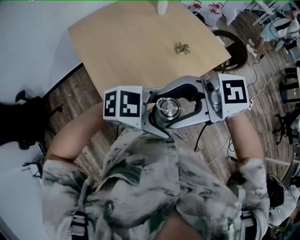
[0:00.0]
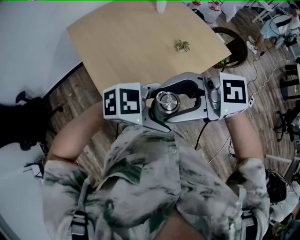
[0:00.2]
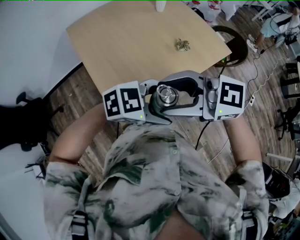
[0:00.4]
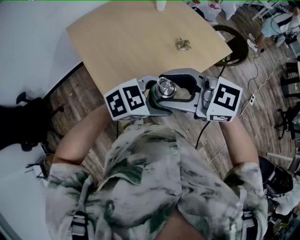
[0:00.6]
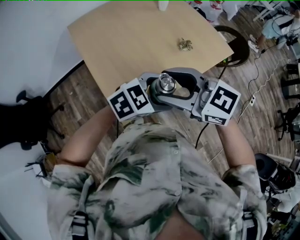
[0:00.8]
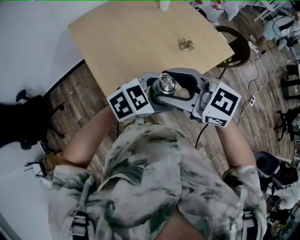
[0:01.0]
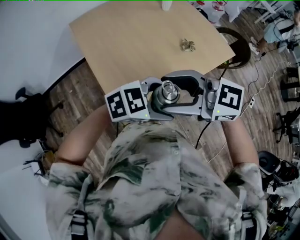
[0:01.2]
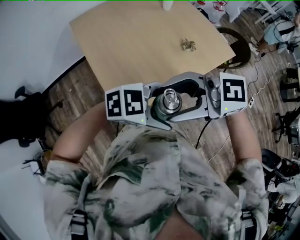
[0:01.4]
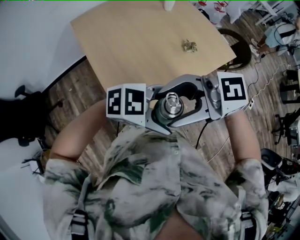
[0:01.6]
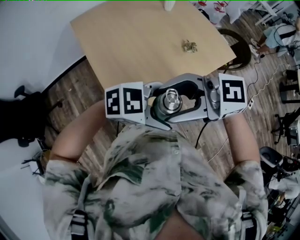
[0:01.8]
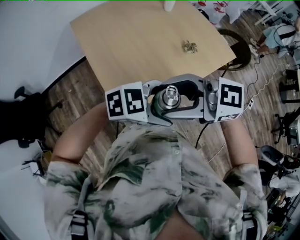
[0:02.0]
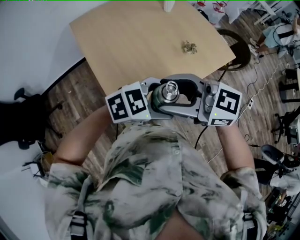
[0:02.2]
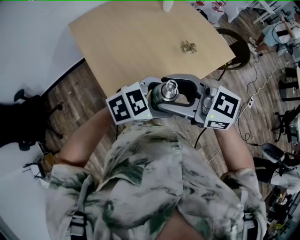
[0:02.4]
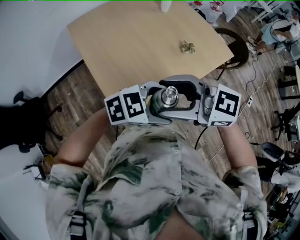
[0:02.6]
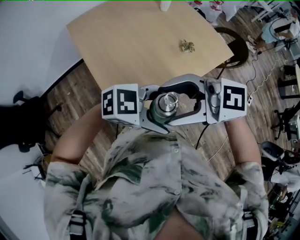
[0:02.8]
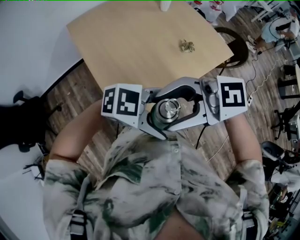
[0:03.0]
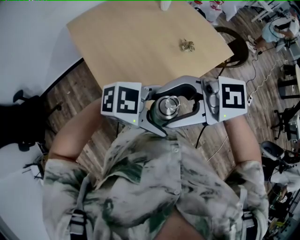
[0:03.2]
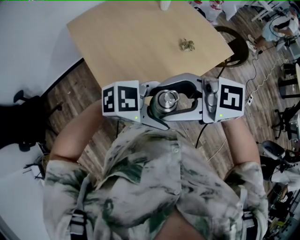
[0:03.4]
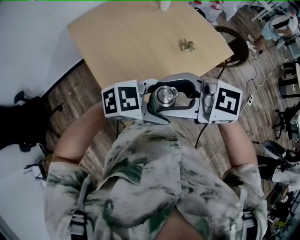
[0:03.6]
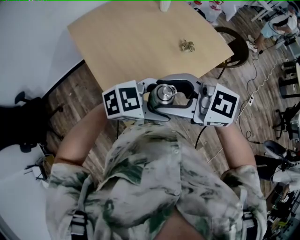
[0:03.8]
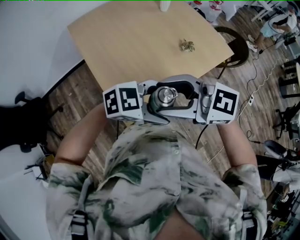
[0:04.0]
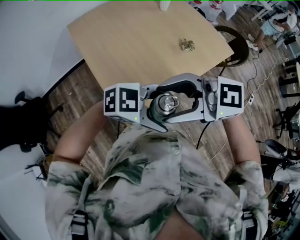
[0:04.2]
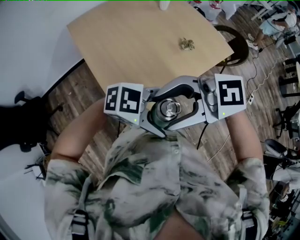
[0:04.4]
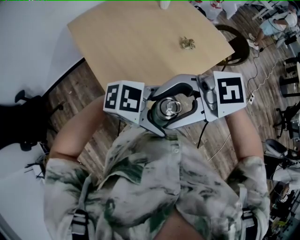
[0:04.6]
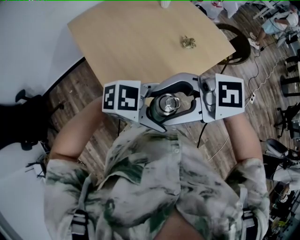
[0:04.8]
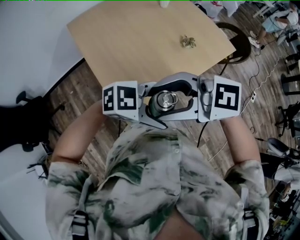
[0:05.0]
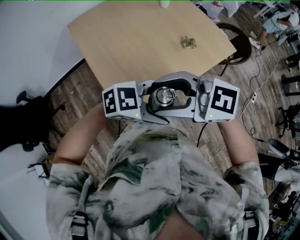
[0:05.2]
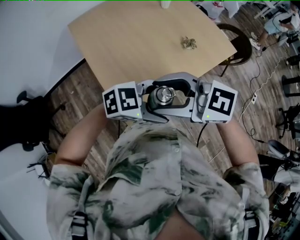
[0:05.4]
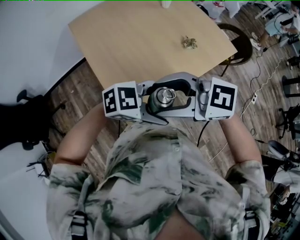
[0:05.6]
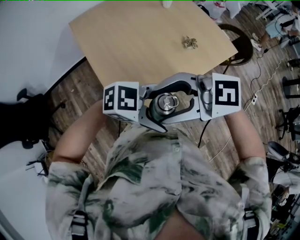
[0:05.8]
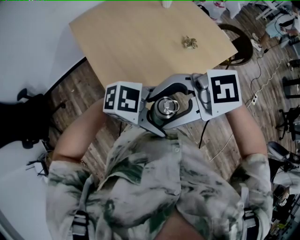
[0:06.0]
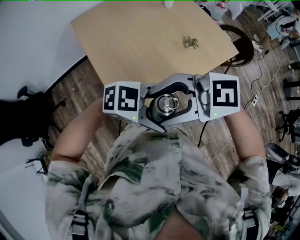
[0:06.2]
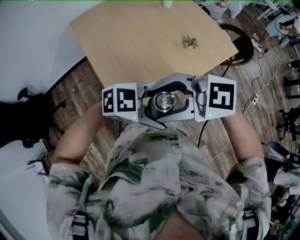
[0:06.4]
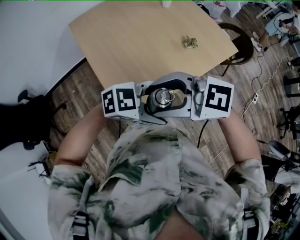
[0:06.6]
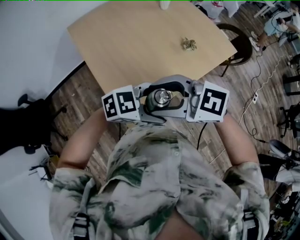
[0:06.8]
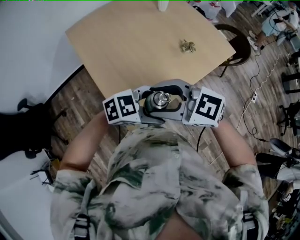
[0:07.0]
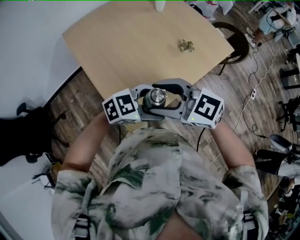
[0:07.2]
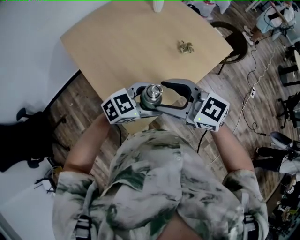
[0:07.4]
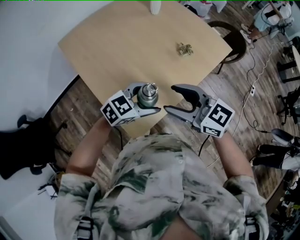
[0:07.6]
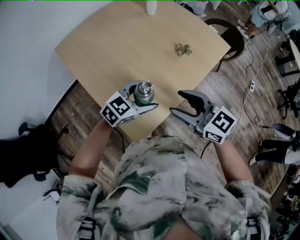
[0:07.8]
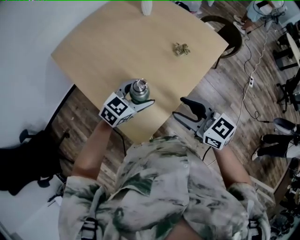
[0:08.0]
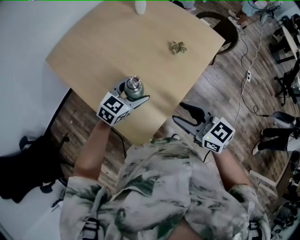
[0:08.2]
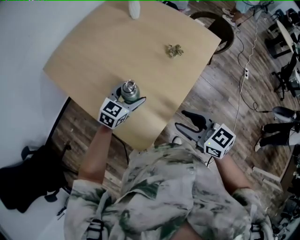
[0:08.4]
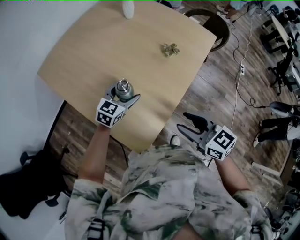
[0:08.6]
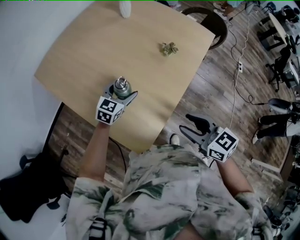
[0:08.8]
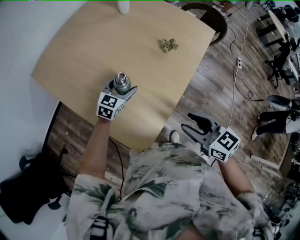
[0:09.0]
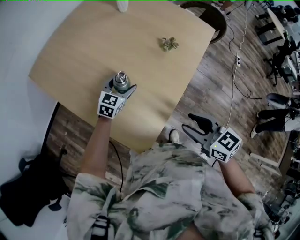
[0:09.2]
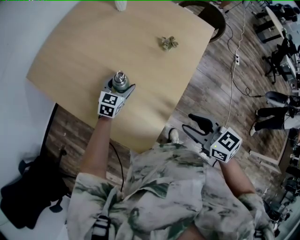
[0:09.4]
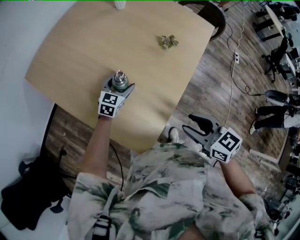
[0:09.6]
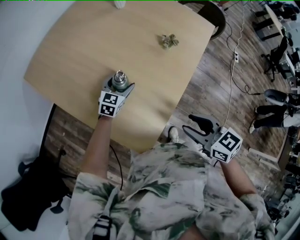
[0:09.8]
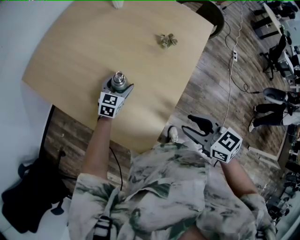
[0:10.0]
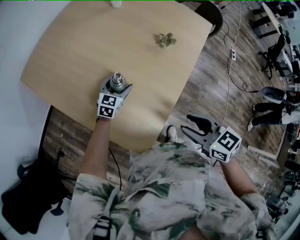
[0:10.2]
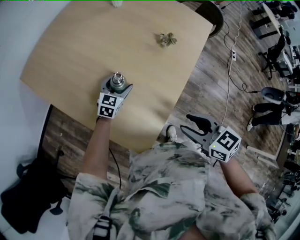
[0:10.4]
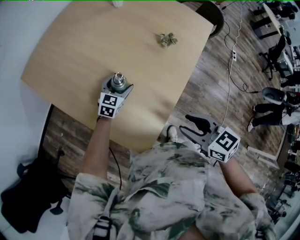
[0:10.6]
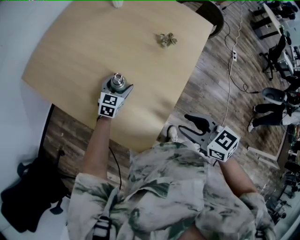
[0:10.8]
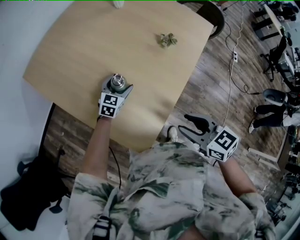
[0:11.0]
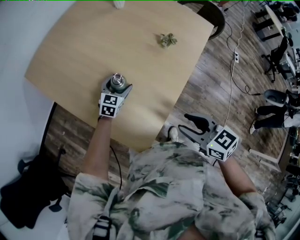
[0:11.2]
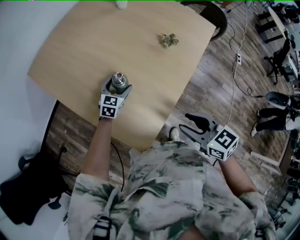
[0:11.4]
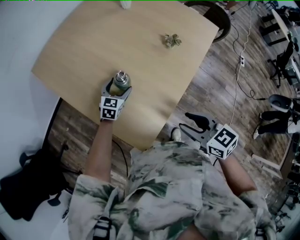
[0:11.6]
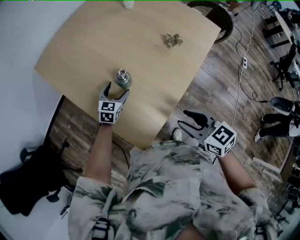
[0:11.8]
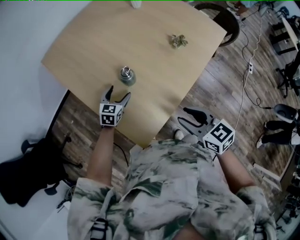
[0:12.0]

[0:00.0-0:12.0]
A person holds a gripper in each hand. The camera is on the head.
6.0 to 7.6 s: The right gripper ends up approximately 15 cm from where it was, and turns by roughly 50 degrees. Meanwhile the left gripper changes place by about 20 cm, and turns by approximately 30 degrees.
7.6 to 9.0 s: The left gripper changes place by approximately 25 cm, while the right gripper travels downward by roughly 10 cm, and rotates some 30 degrees.
9.0 to 10.4 s: The left gripper heads downward, covering approximately 10 cm.
10.4 to 12.0 s: The left gripper travels backward and to the left by approximately 10 cm.

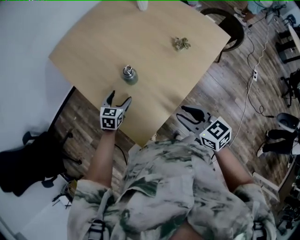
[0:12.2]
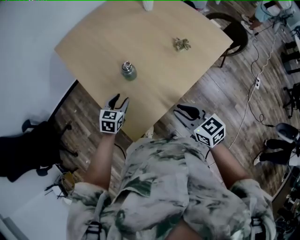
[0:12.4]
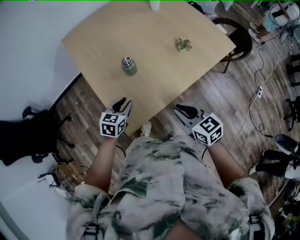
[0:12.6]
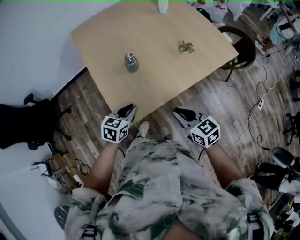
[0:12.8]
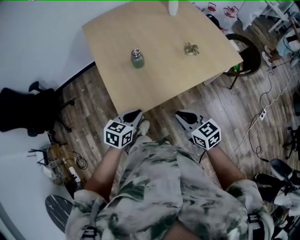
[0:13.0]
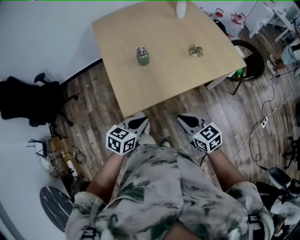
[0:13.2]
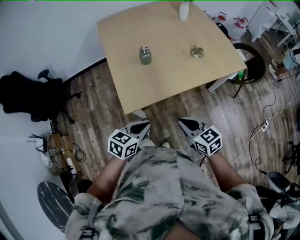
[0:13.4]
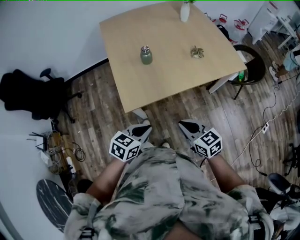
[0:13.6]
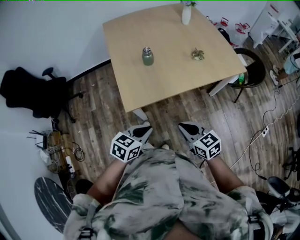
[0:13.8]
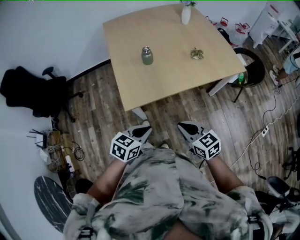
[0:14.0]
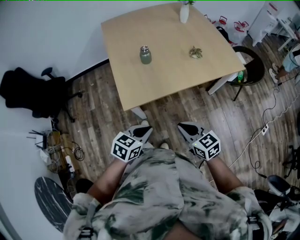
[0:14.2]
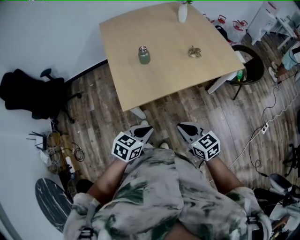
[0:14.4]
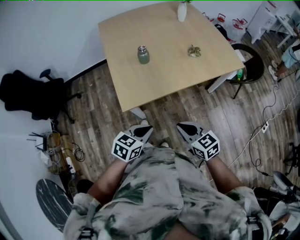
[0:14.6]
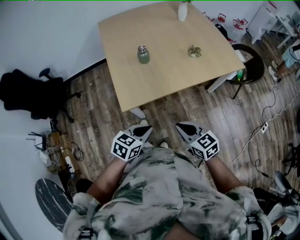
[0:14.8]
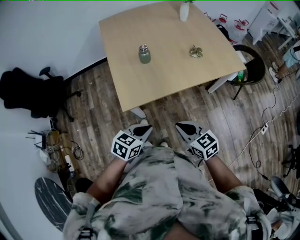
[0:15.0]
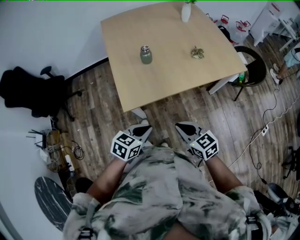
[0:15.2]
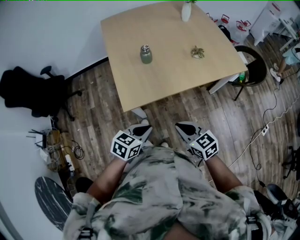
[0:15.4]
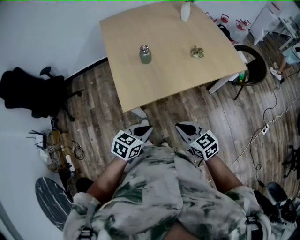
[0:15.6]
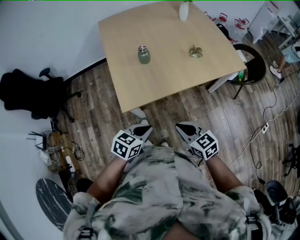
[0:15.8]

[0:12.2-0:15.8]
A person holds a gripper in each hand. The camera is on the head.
12.2 to 14.0 s: The right gripper is displaced backward and to the right by approximately 25 cm, changes its angle by some 20 degrees, and closes up, while the left gripper shifts approximately 40 cm backward, and closes.
14.0 to 15.8 s: The grippers stay close to where they were, moving slightly.

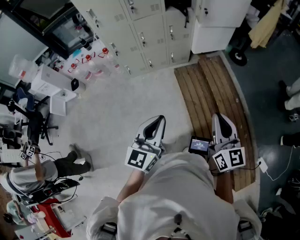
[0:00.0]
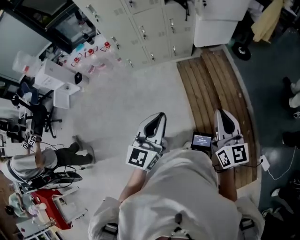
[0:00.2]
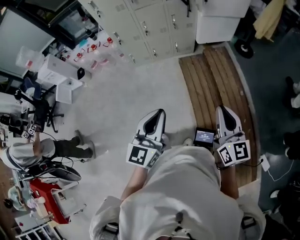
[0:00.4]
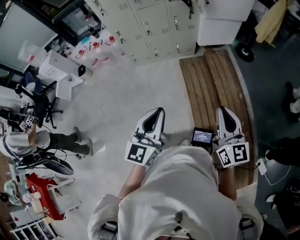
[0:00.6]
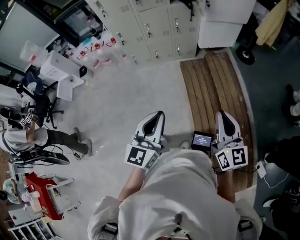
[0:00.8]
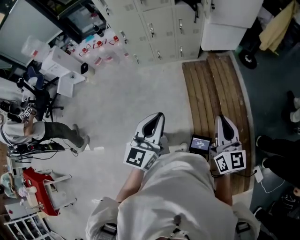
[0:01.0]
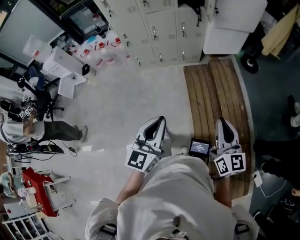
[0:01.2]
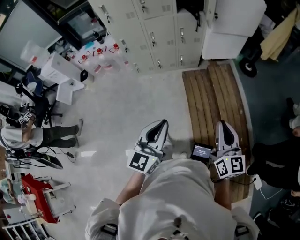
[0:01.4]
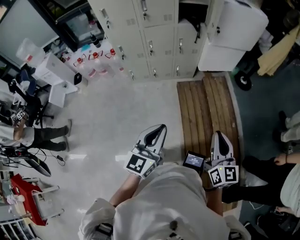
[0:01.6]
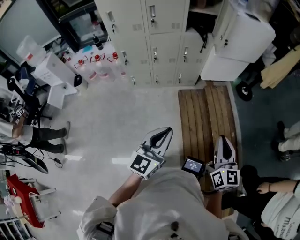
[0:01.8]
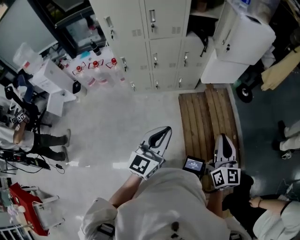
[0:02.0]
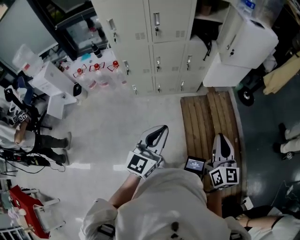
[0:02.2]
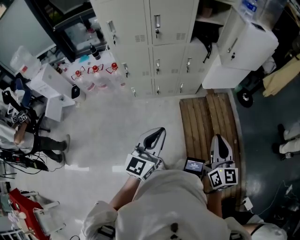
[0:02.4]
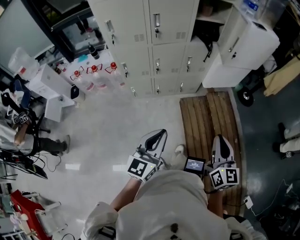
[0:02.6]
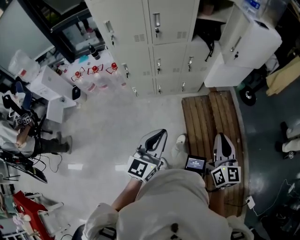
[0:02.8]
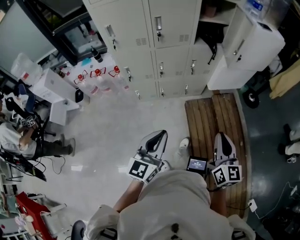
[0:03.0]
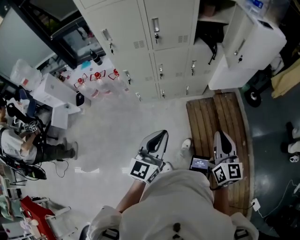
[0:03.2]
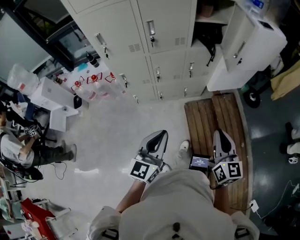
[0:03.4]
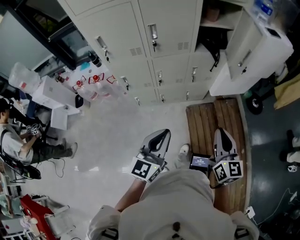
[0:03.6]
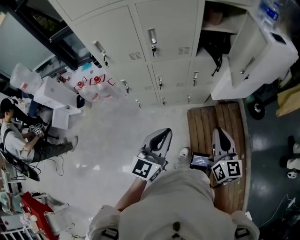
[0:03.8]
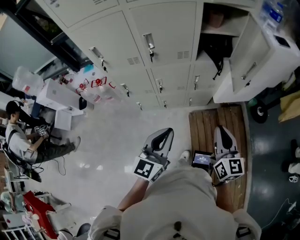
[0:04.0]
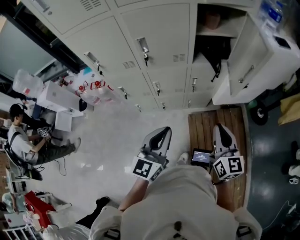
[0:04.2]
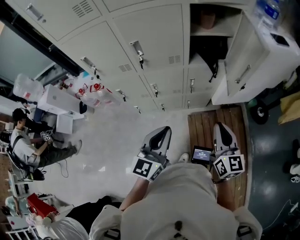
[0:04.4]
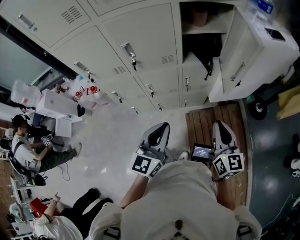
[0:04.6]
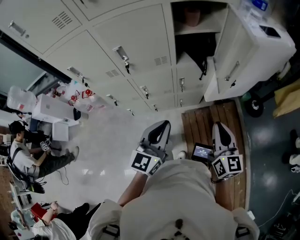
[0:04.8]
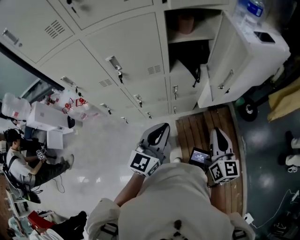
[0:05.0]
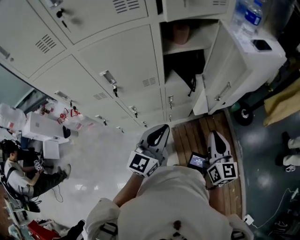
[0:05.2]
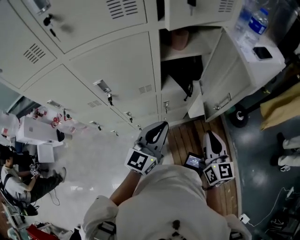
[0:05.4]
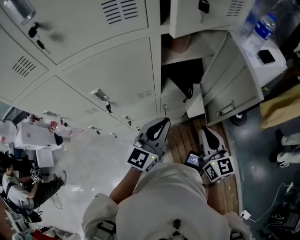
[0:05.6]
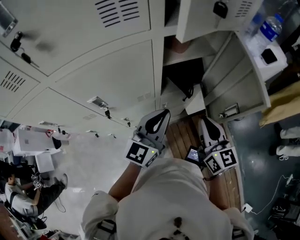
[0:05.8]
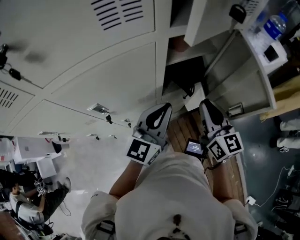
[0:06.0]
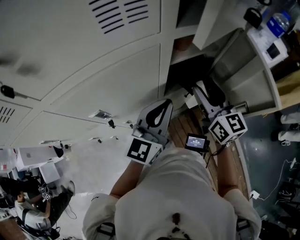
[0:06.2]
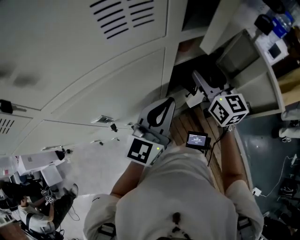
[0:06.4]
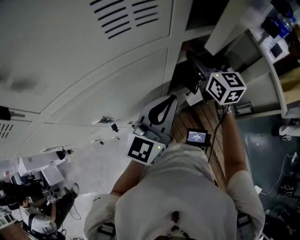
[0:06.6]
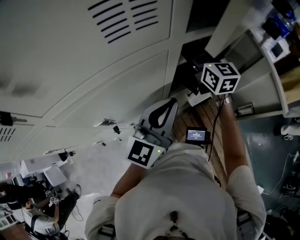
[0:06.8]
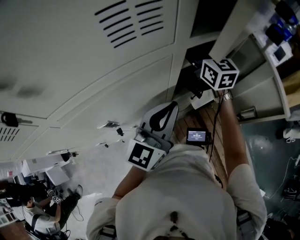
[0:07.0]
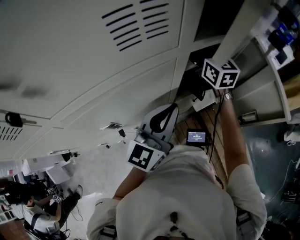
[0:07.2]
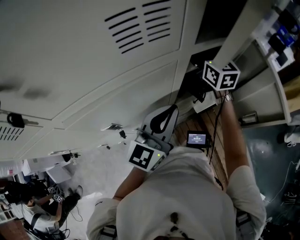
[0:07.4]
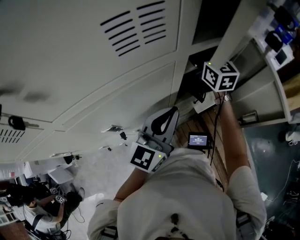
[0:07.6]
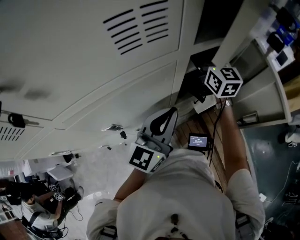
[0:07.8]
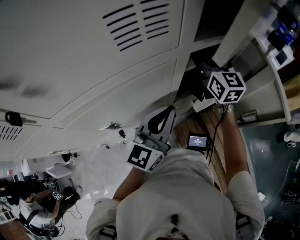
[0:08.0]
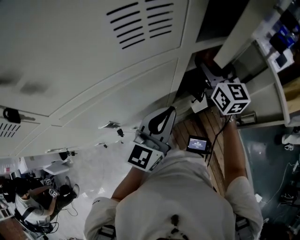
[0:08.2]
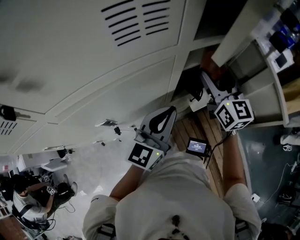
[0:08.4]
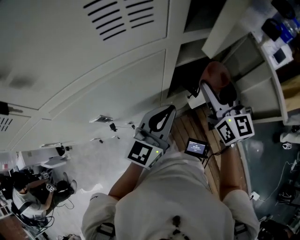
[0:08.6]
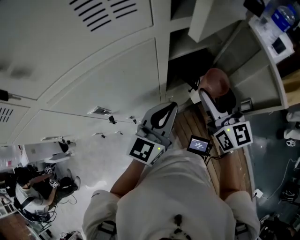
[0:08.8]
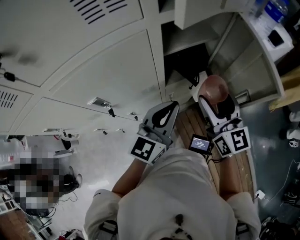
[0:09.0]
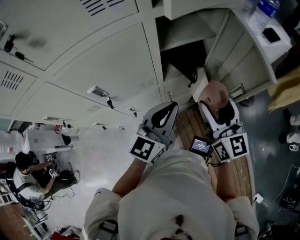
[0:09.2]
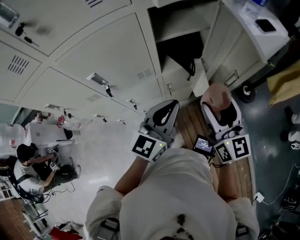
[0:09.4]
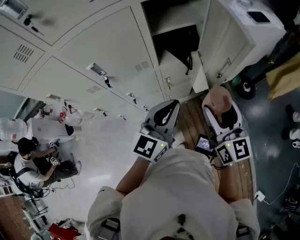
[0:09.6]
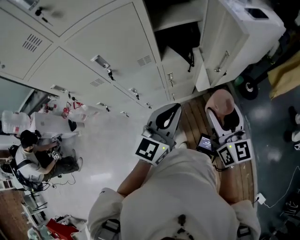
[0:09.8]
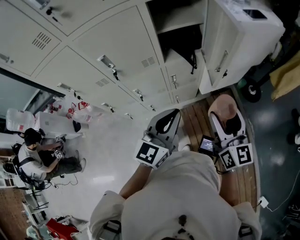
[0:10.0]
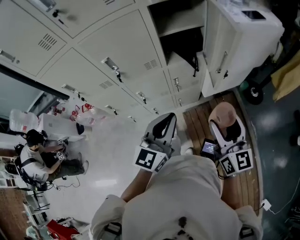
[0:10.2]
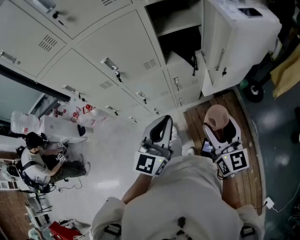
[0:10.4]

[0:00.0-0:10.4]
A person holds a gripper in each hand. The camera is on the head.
0.0 to 1.4 s: Both grippers travel together to the right, approximately 5 cm.
1.4 to 3.0 s: The two grippers go approximately 30 cm forward and to the left.
3.0 to 4.4 s: The two grippers go some 25 cm forward.
4.4 to 6.0 s: The two grippers go roughly 30 cm forward. The left gripper changes its angle by some 20 degrees.
6.0 to 7.4 s: The right gripper heads forward, covering some 25 cm, and opens. The left gripper ends up about 5 cm from where it was.
7.4 to 9.0 s: The left gripper shifts some 10 cm to the right and backward, while the right gripper is displaced backward by roughly 25 cm.
9.0 to 10.4 s: The grippers both shift backward by approximately 25 cm.
